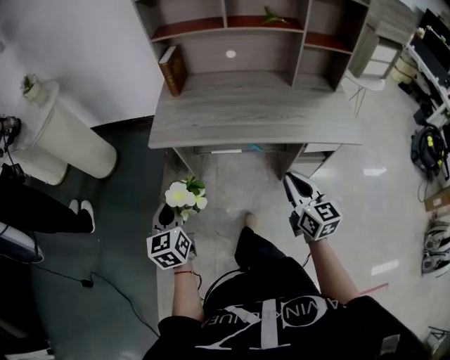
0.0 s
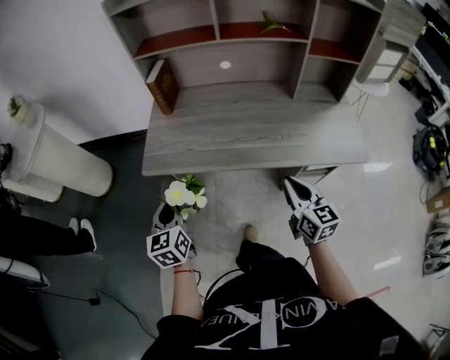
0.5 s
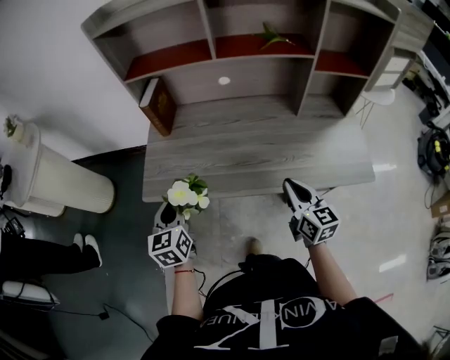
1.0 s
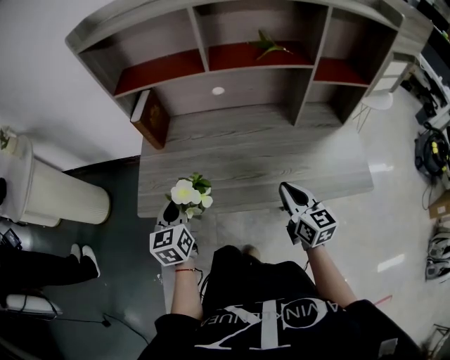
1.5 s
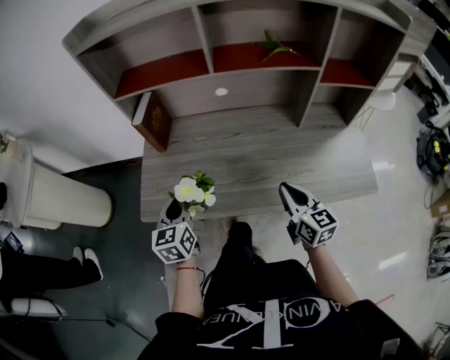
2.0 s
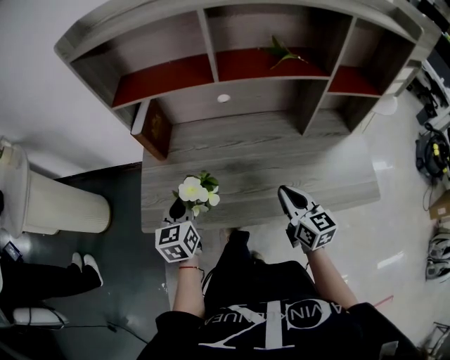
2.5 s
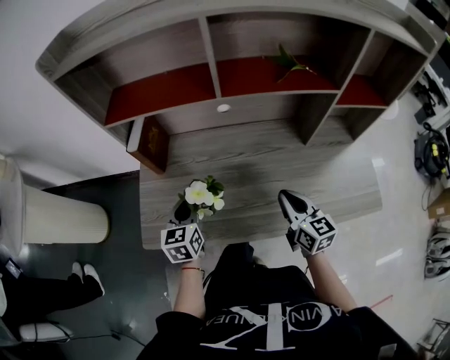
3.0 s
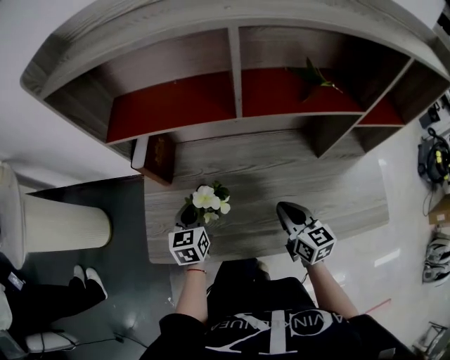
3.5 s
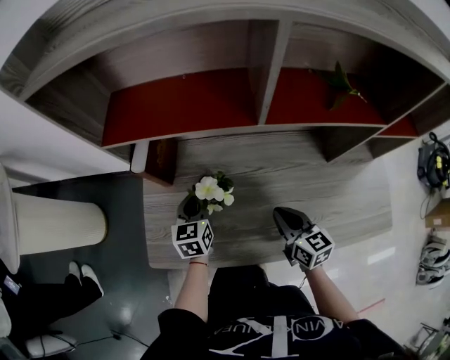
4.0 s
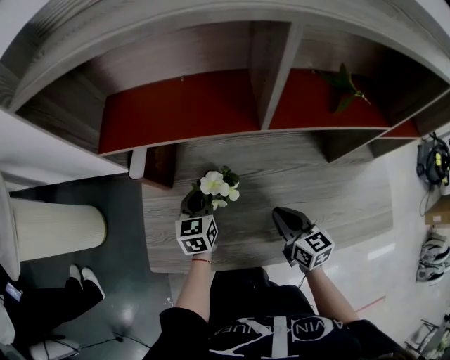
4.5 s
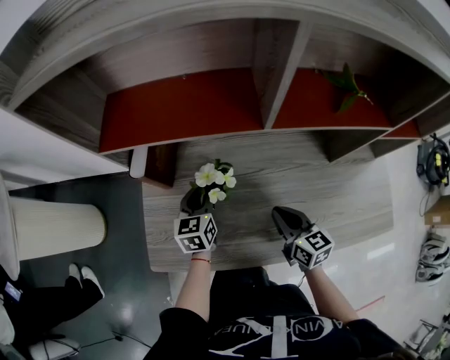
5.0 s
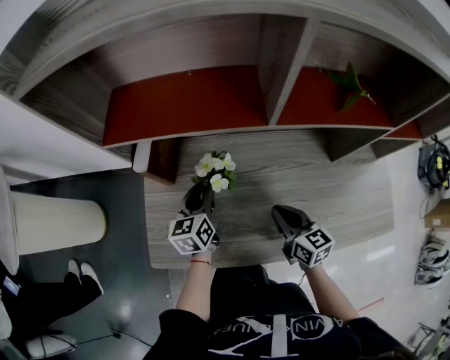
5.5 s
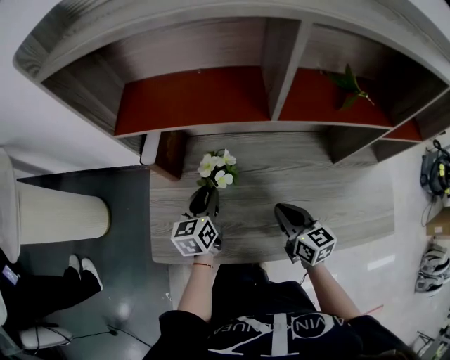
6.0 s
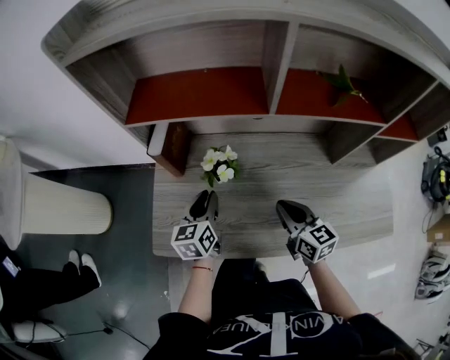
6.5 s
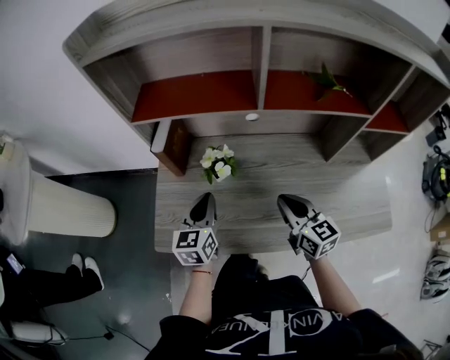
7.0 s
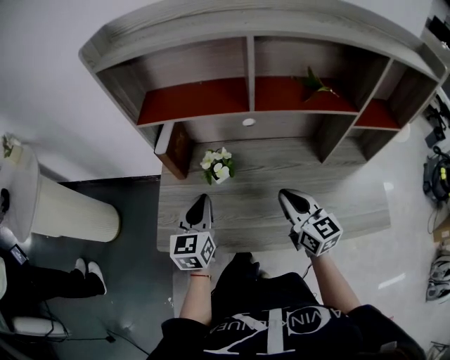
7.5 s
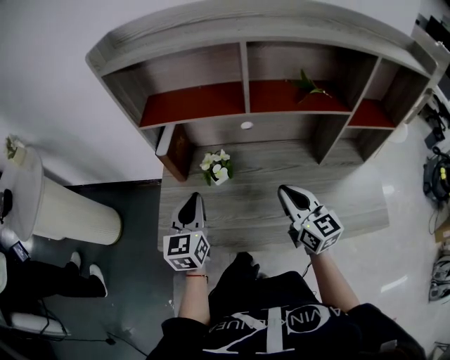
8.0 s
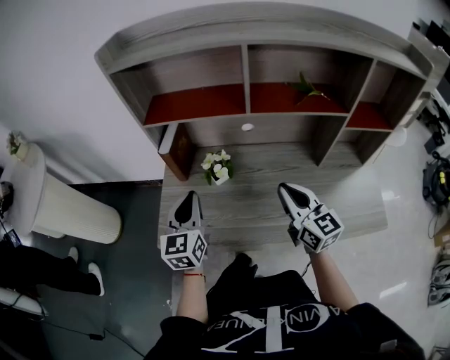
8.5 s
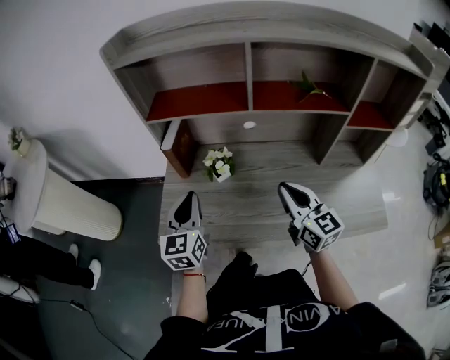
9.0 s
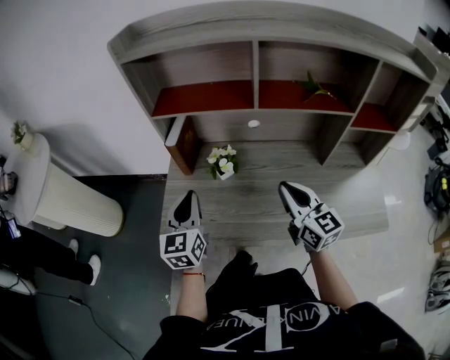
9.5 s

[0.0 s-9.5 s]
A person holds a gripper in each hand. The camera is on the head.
0.0 to 2.0 s: The two grippers go approximately 30 cm forward.
2.0 to 4.0 s: The left gripper moves forward and downward, roughly 20 cm, while the right gripper moves forward, to the left and downward, some 15 cm.
4.0 to 5.5 s: There are only small adjustments of the grippers.
5.5 to 7.5 s: The right gripper heads upward, covering roughly 10 cm. Meanwhile the left gripper shifts some 15 cm upward and backward.
7.5 to 9.5 s: The right gripper changes place by some 5 cm; the left gripper ends up approximately 5 cm from where it was.

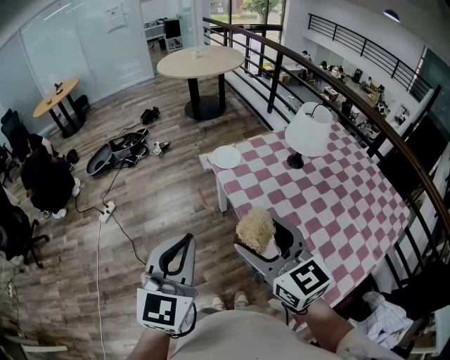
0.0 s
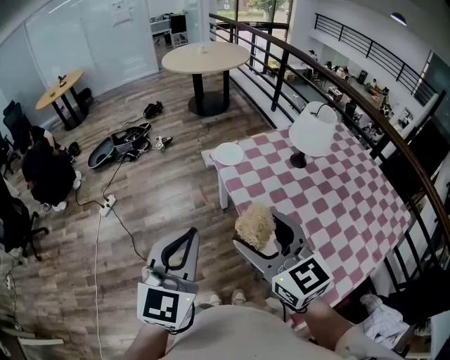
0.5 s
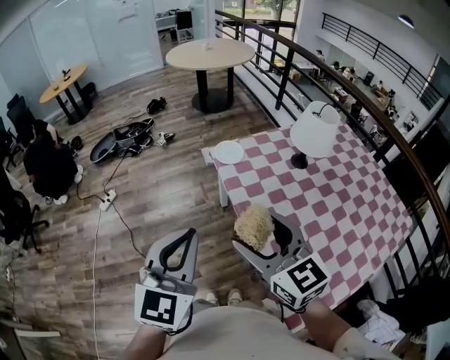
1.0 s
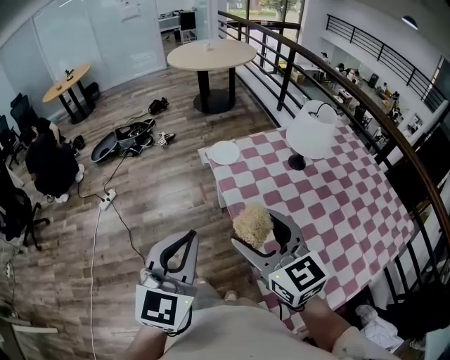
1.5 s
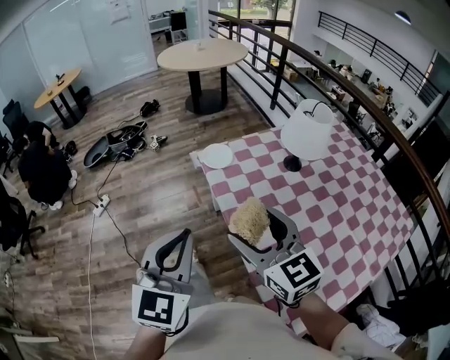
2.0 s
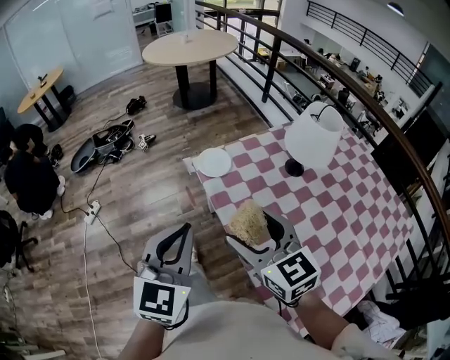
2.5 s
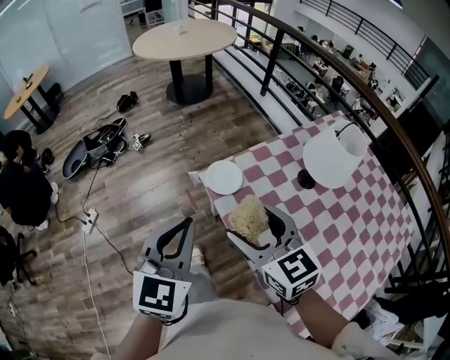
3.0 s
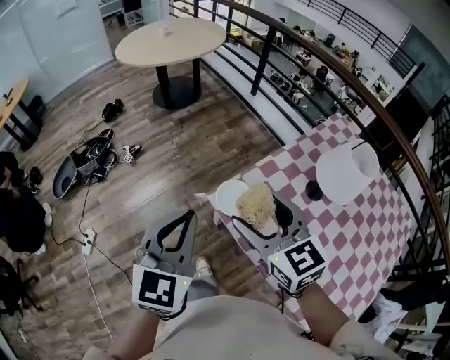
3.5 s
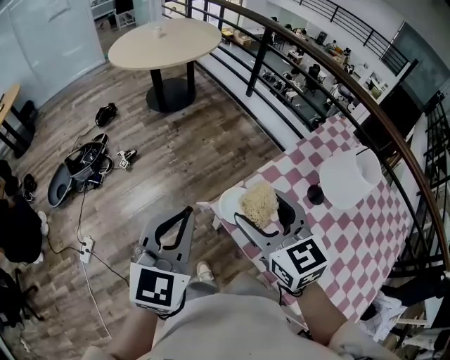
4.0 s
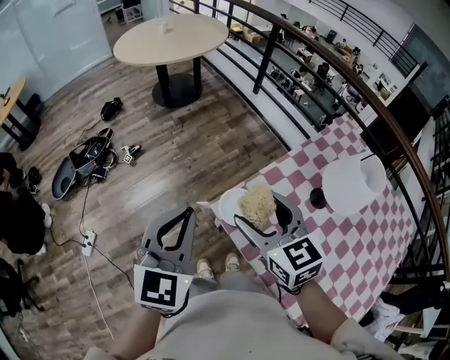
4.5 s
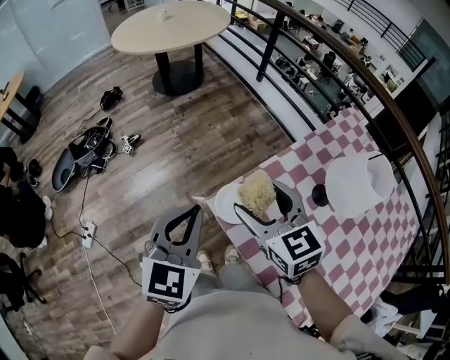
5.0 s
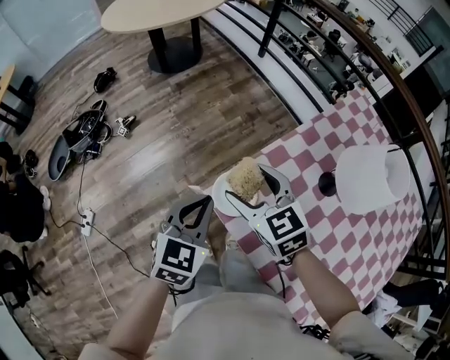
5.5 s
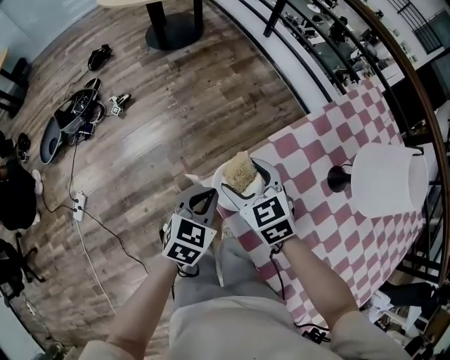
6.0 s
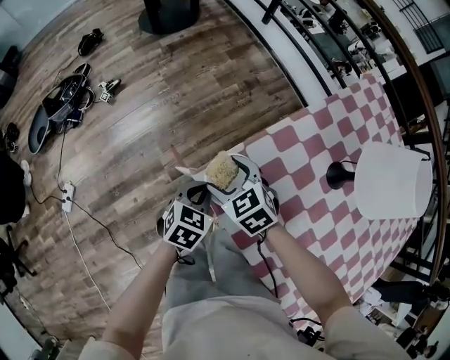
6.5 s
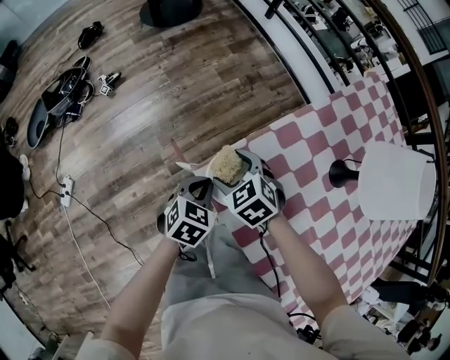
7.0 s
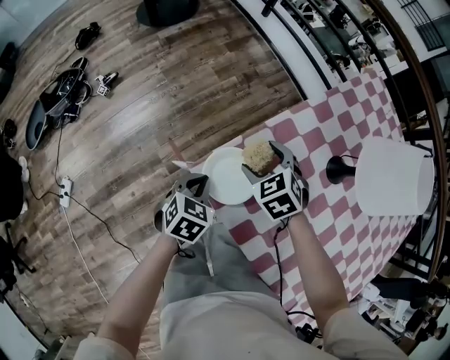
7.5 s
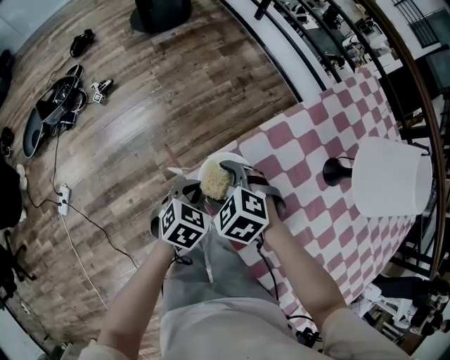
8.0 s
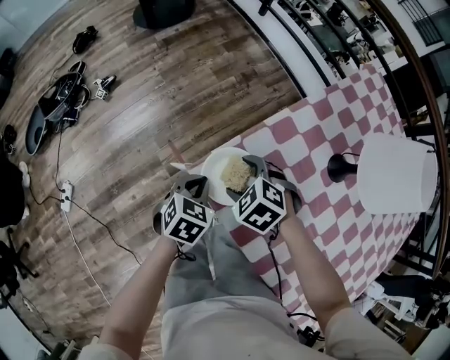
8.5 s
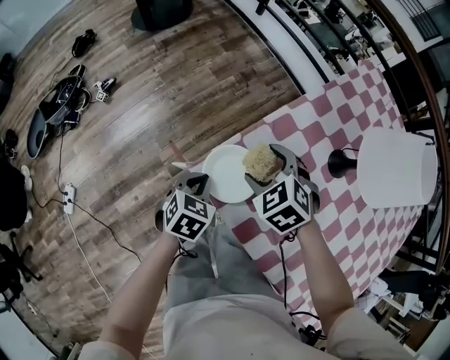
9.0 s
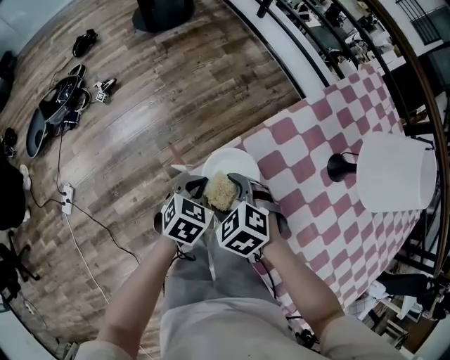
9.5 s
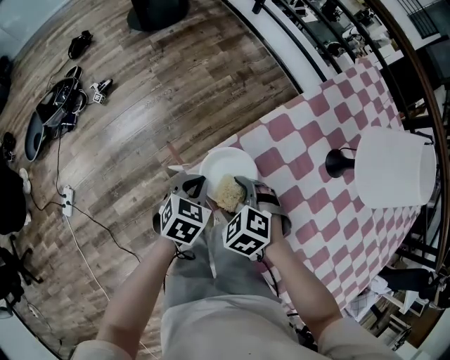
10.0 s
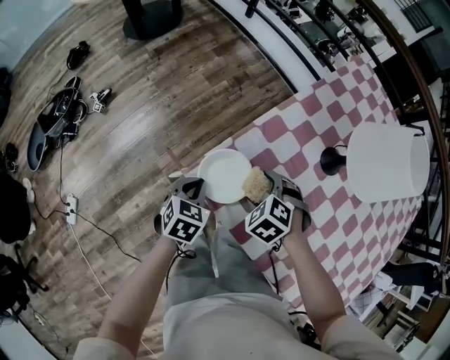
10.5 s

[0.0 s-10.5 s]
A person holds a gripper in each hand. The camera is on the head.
0.0 to 2.0 s: The left gripper moves to the right, about 10 cm, while the right gripper goes some 10 cm to the right and forward.
2.0 to 4.0 s: Both grippers are carried forward, some 40 cm. The right gripper rotates some 20 degrees.
4.0 to 6.5 s: Both grippers travel together downward, roughly 35 cm. The right gripper angles its fingers downward, by roughly 30 degrees. Meanwhile the left gripper tilts its fingers some 40 degrees downward.
6.5 to 8.5 s: The right gripper moves left and right over approximately 10 cm, changing direction 2 times, and swivels roughly 20 degrees.
8.5 to 10.5 s: The right gripper moves left and right over some 10 cm, changing direction 2 times.

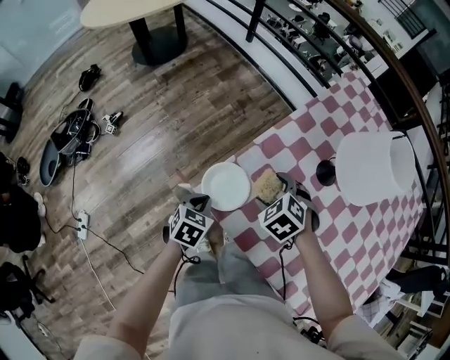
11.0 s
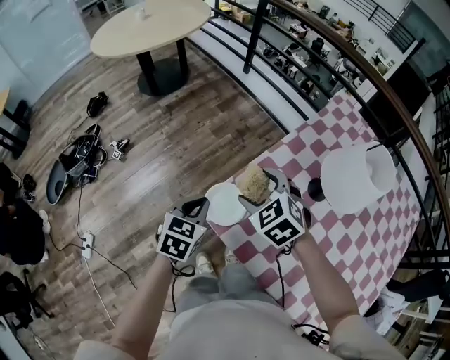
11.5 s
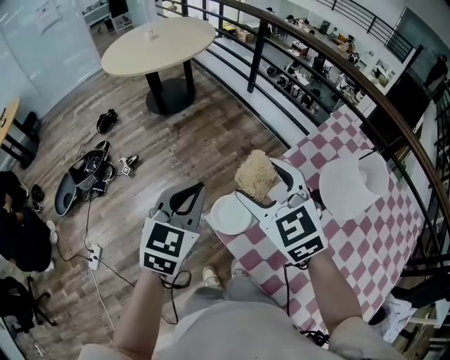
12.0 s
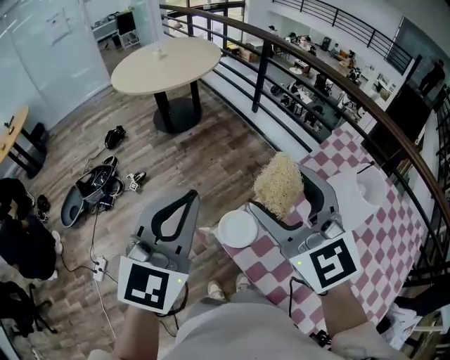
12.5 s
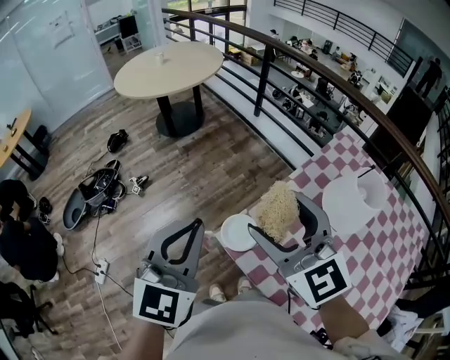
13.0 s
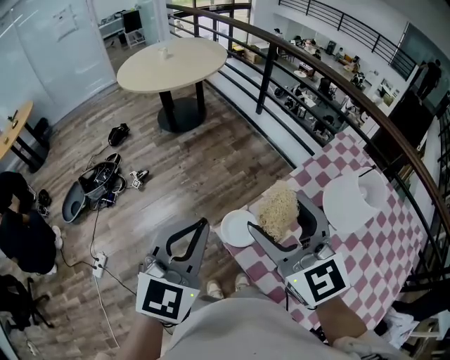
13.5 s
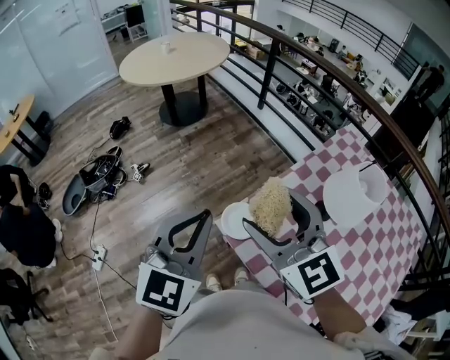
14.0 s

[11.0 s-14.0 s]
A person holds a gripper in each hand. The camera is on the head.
11.0 to 12.5 s: The grippers both shift upward by roughly 40 cm. The left gripper points its fingers about 50 degrees further upward. Meanwhile the right gripper angles its fingers upward, by roughly 60 degrees.
12.5 to 14.0 s: The right gripper shifts by some 5 cm, while the left gripper moves roughly 5 cm.

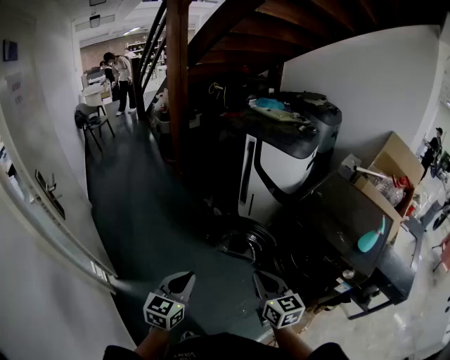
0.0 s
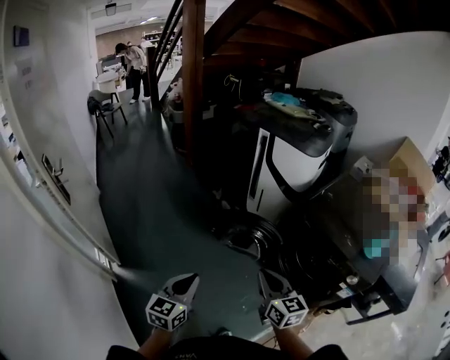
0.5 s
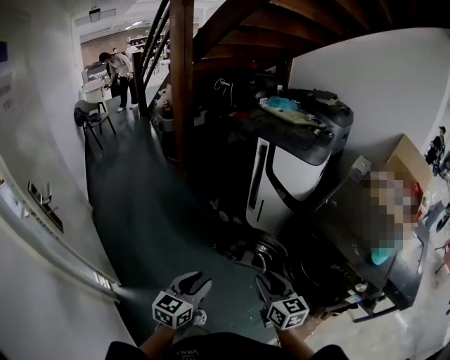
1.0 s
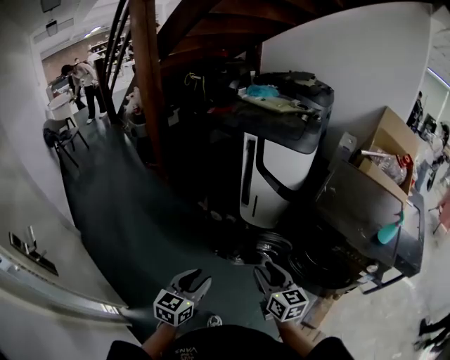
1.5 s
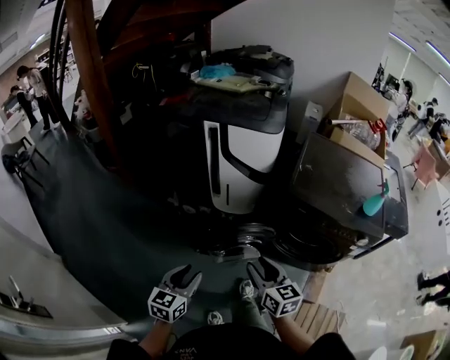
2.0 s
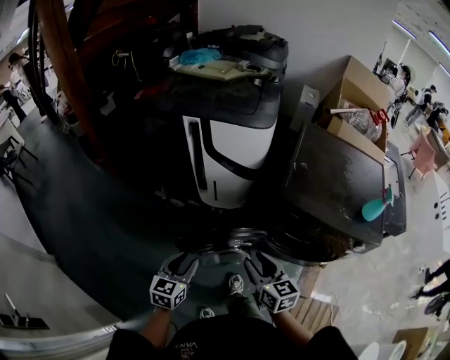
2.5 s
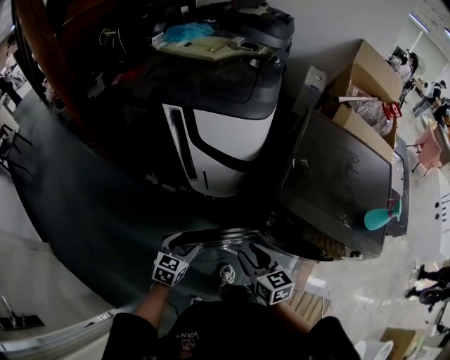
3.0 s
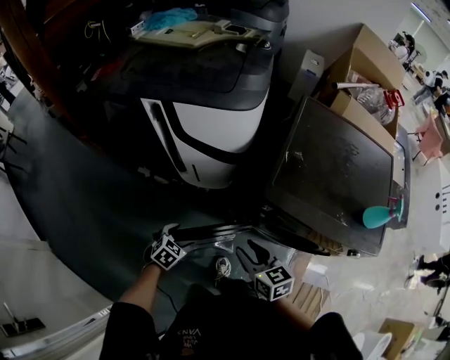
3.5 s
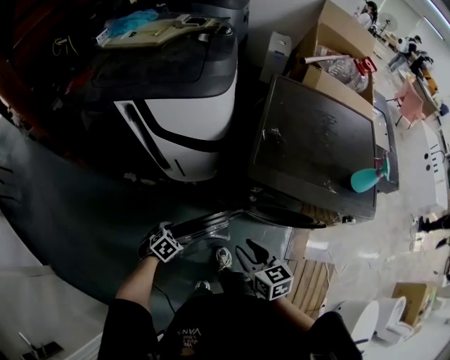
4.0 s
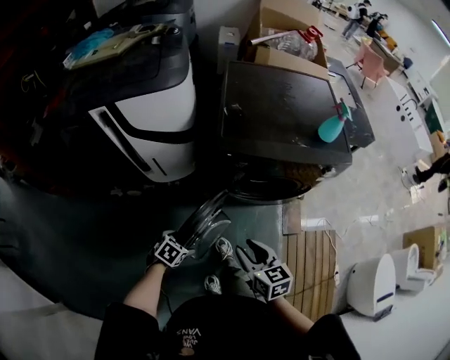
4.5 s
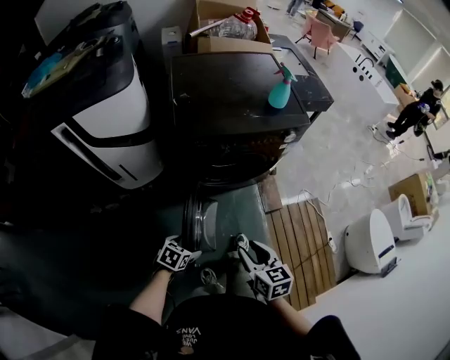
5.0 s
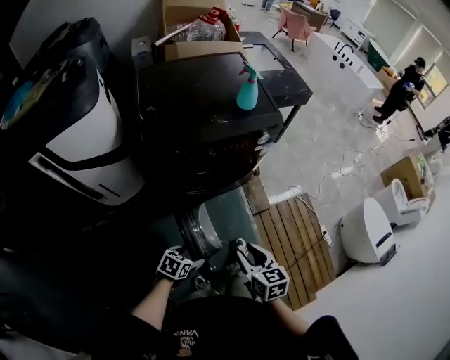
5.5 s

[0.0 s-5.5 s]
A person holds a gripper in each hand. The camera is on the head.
0.0 to 2.0 s: The left gripper shifts by roughly 30 cm, and swivels about 30 degrees, while the right gripper shifts by approximately 20 cm, swivels roughly 30 degrees, and opens.
2.0 to 3.5 s: The left gripper heads forward, downward and to the right, covering some 35 cm, tilts its fingers some 40 degrees downward, and opens up, while the right gripper is displaced forward, to the right and downward by roughly 25 cm.
3.5 to 5.5 s: The left gripper shifts by about 30 cm, and turns by roughly 40 degrees. Meanwhile the right gripper changes place by some 35 cm, and changes its angle by about 50 degrees.
